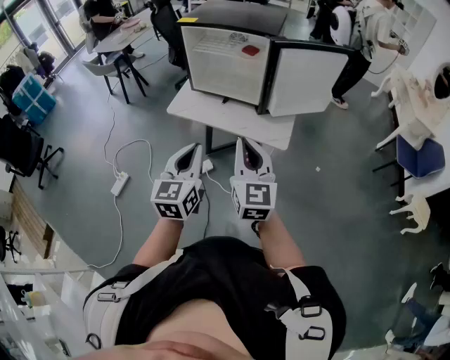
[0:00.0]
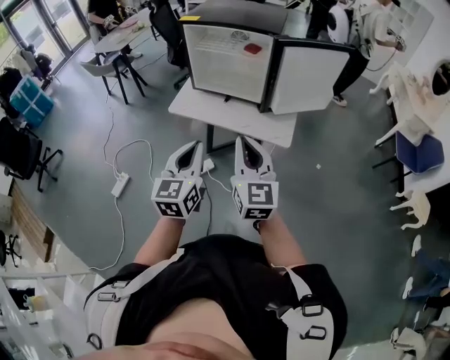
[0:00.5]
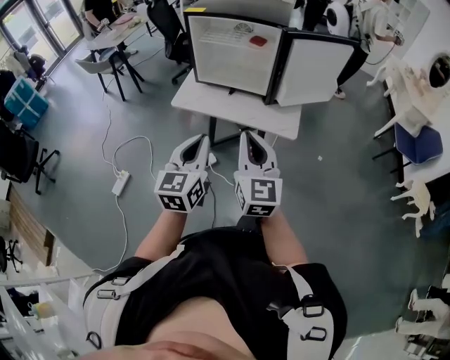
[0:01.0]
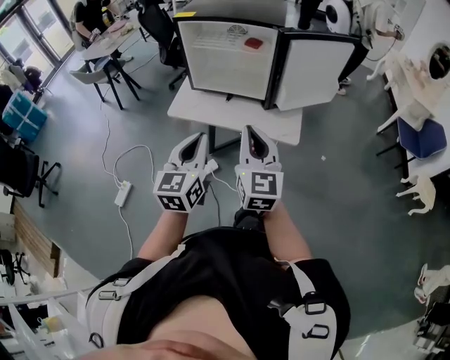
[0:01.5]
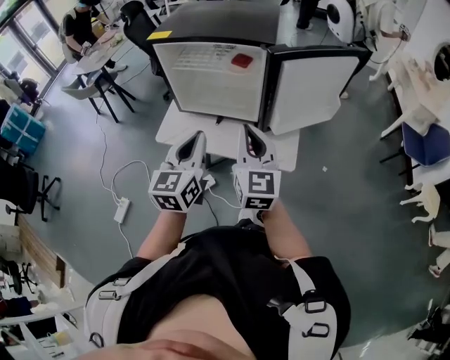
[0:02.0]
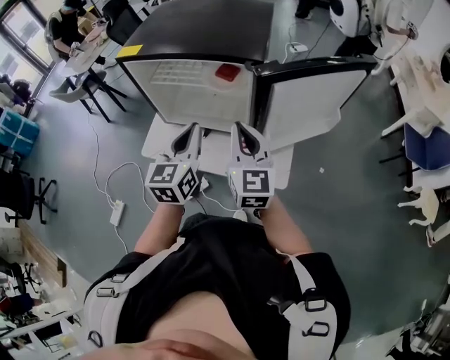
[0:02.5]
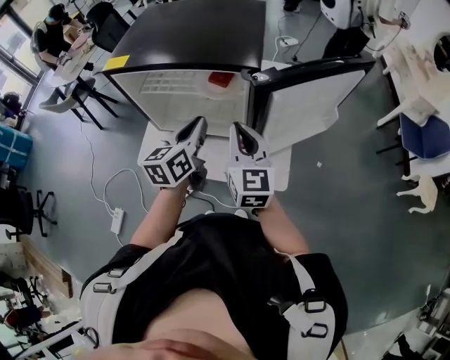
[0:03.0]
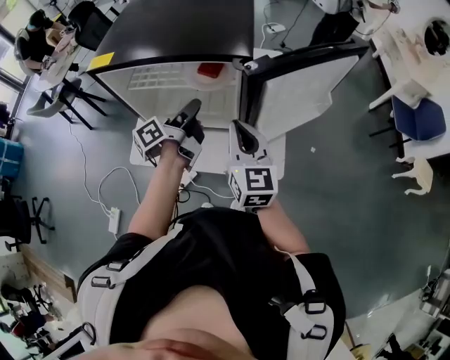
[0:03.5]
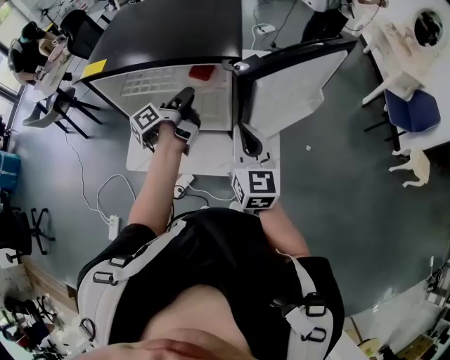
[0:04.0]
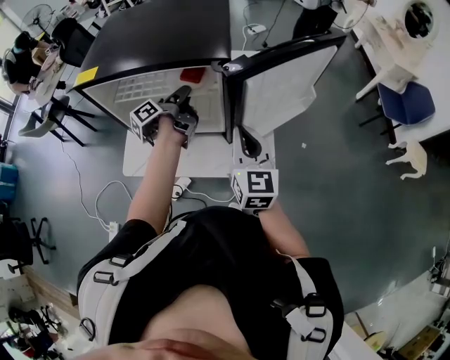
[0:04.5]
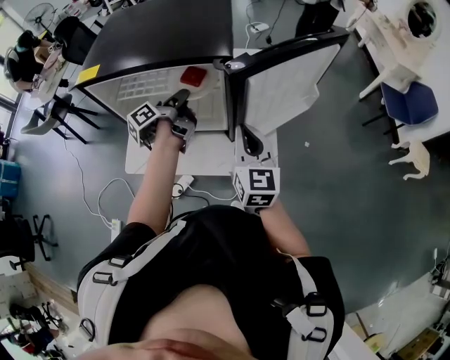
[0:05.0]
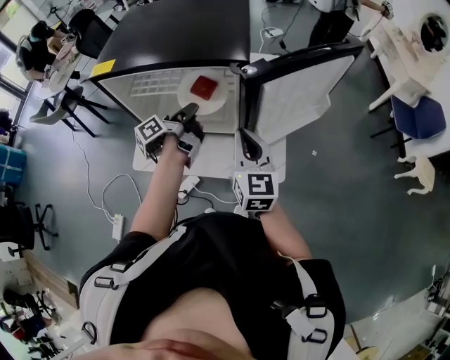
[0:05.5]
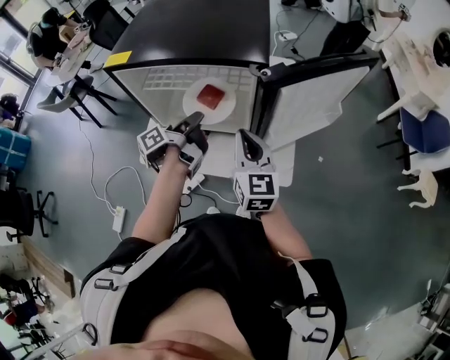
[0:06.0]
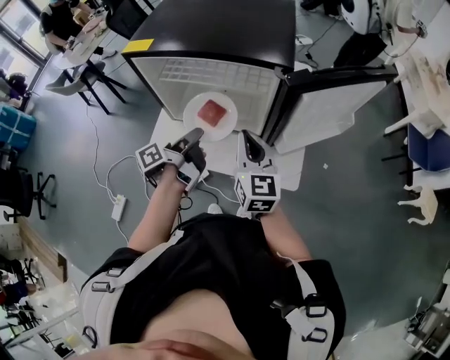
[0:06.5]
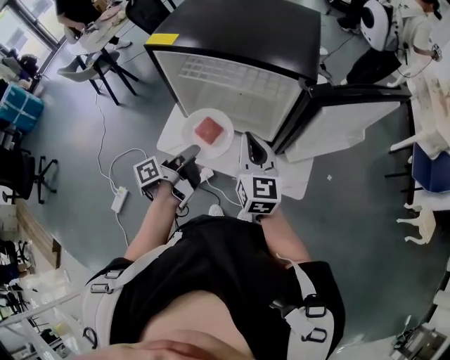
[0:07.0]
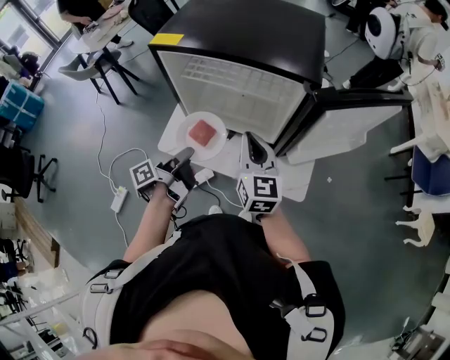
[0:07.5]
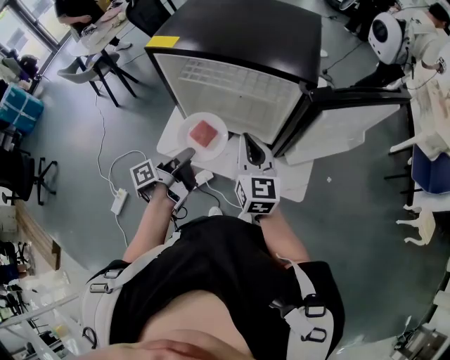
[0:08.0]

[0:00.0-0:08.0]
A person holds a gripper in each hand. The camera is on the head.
0:00.0 to 0:02.0: Both grippers travel together forward, some 20 cm.
0:02.0 to 0:04.0: The left gripper moves forward, approximately 30 cm, rotates around the line of its fingers by approximately 80 degrees, counterclockwise from behind, and opens, while the right gripper moves forward and to the right, about 15 cm.
0:04.0 to 0:06.0: The right gripper moves about 5 cm. Meanwhile the left gripper shifts about 5 cm backward.
0:06.0 to 0:08.0: The left gripper goes approximately 15 cm backward and to the left. Meanwhile the right gripper travels to the left by about 10 cm.

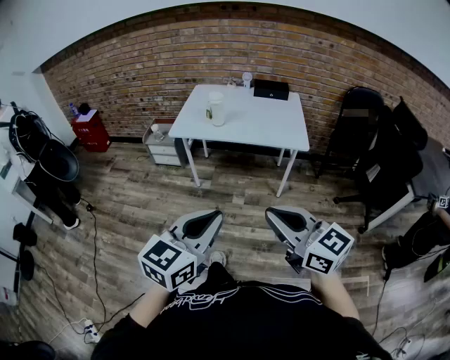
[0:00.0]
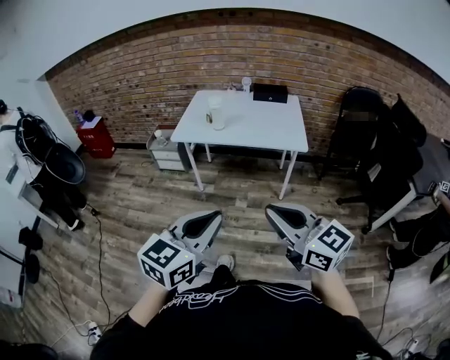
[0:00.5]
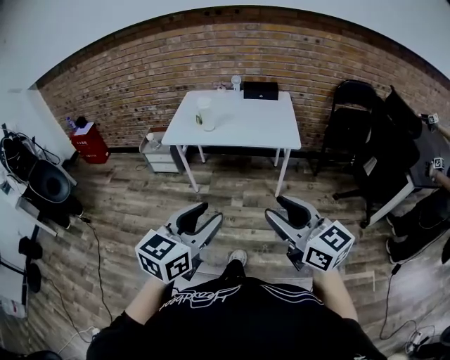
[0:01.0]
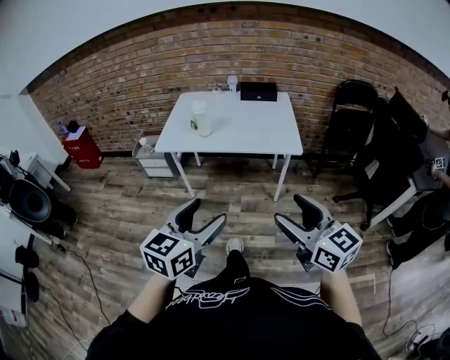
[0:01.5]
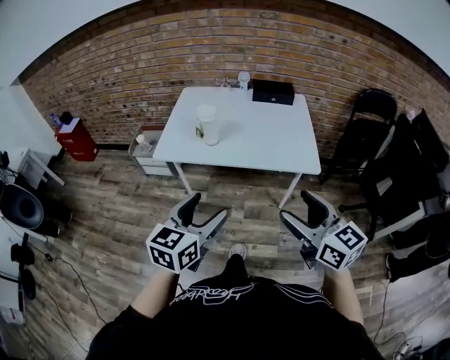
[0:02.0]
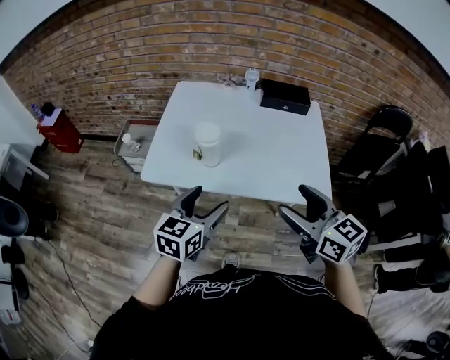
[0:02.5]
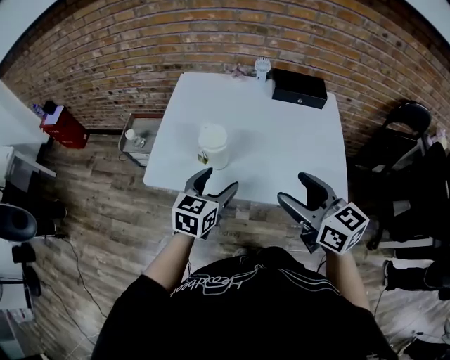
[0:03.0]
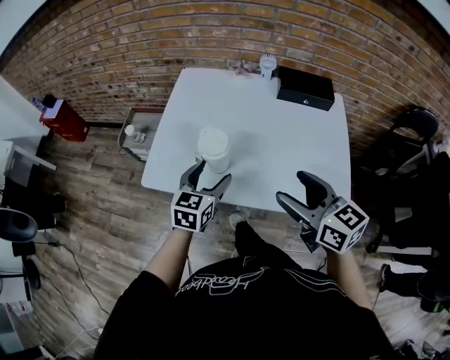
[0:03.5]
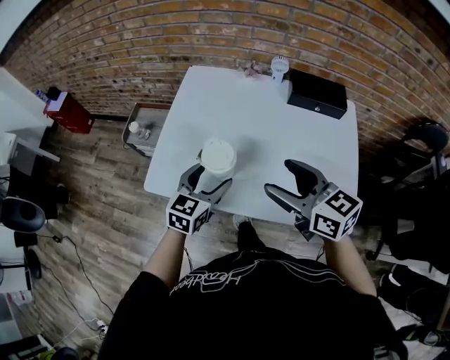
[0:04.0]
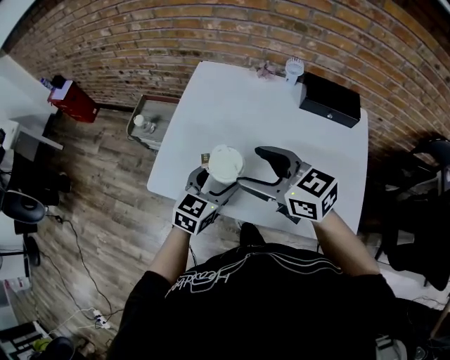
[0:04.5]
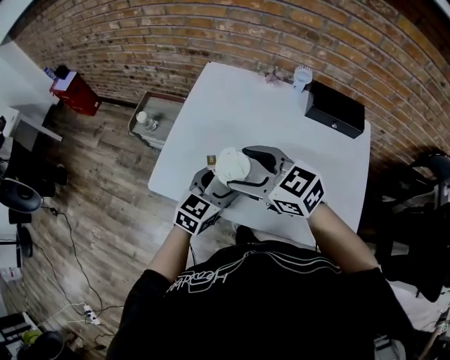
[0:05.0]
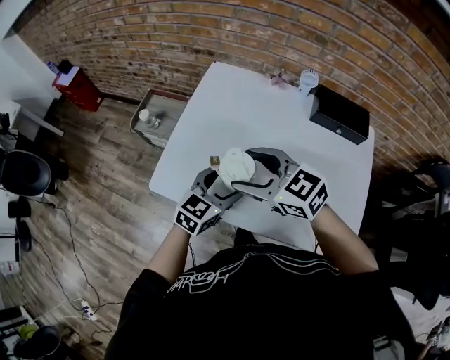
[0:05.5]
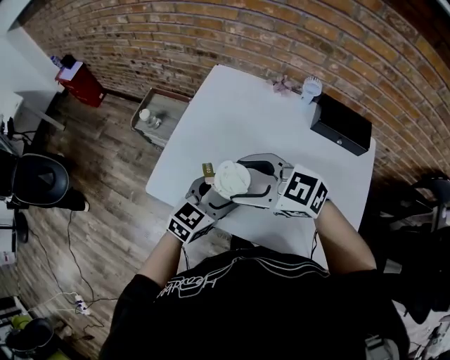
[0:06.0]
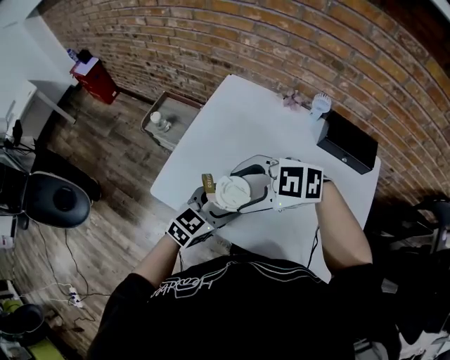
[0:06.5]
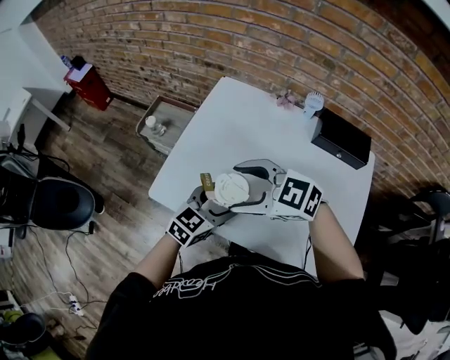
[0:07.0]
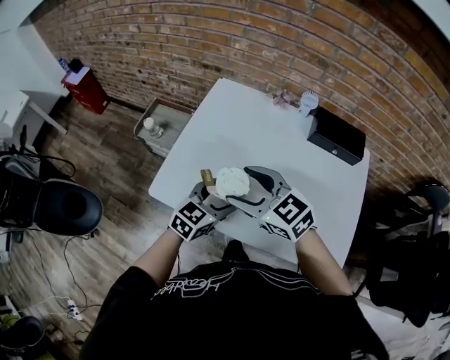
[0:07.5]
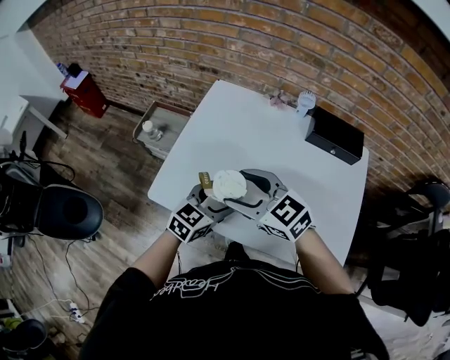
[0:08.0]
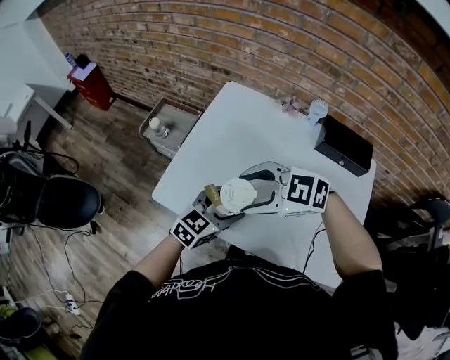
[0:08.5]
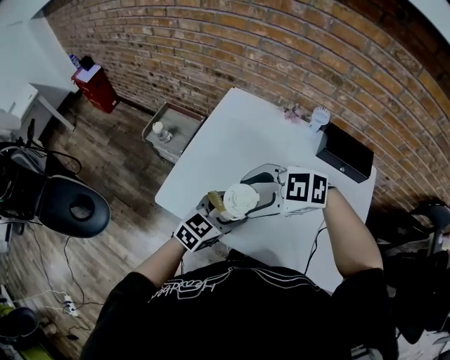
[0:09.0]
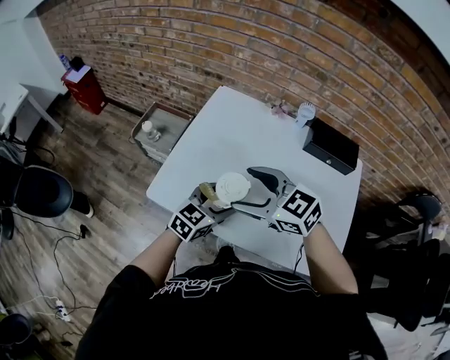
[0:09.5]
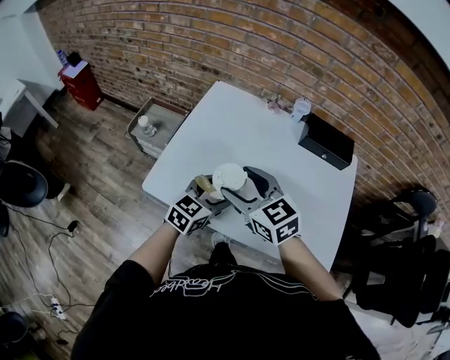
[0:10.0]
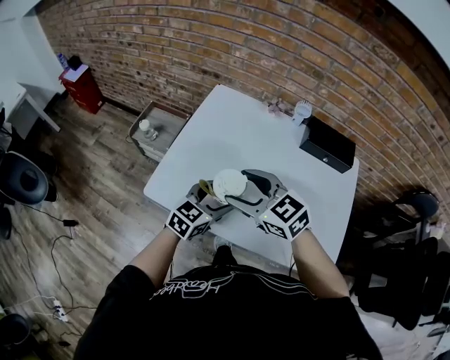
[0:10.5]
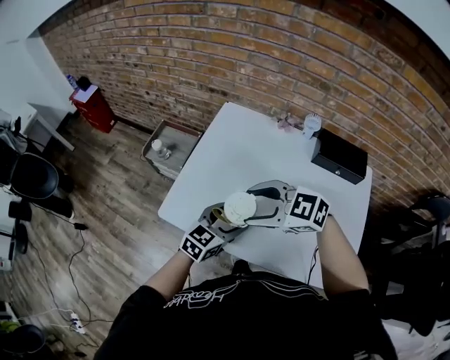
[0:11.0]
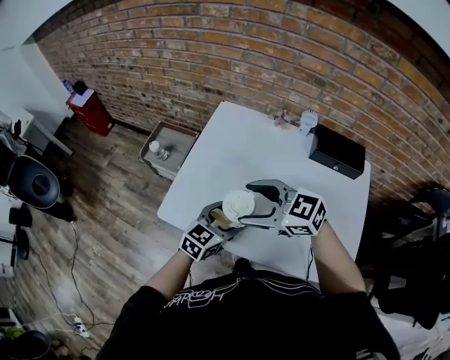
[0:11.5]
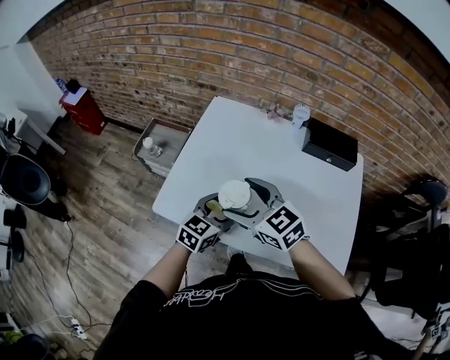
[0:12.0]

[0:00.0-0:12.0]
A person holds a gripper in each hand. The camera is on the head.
0:00.0 to 0:02.0: The grippers both shift forward by about 25 cm. The right gripper opens up. The left gripper opens up.
0:02.0 to 0:04.0: Both grippers travel together forward, roughly 40 cm. The right gripper turns by approximately 20 degrees.
0:04.0 to 0:06.0: The right gripper changes place by some 15 cm, and turns by roughly 50 degrees.

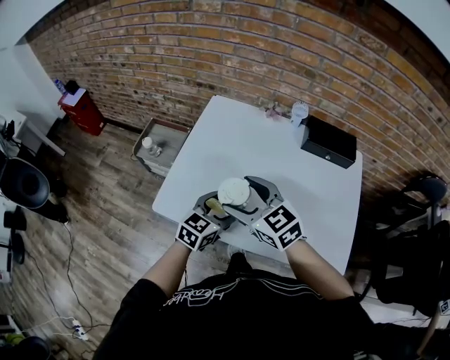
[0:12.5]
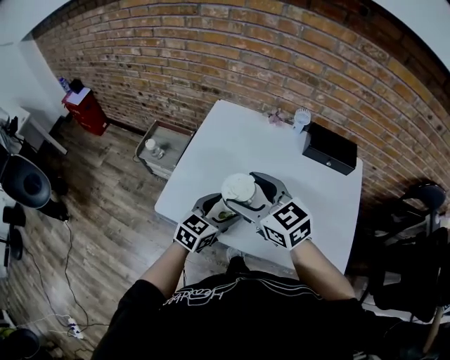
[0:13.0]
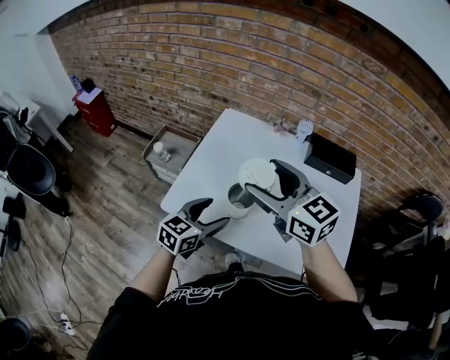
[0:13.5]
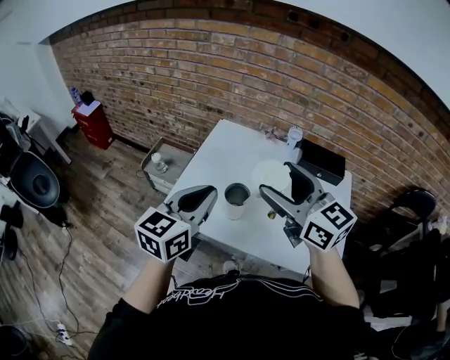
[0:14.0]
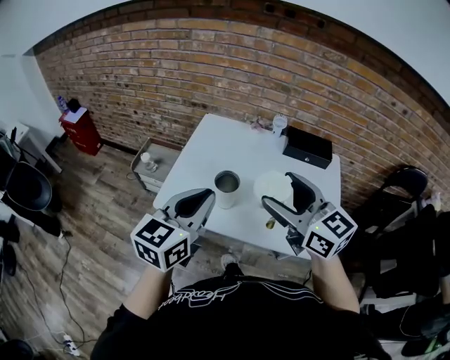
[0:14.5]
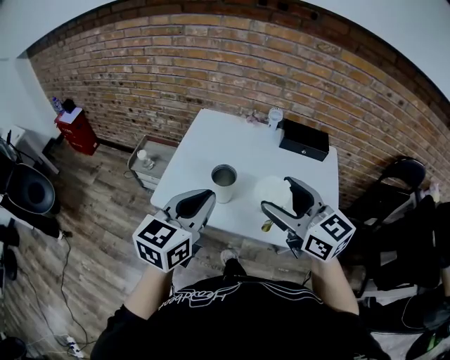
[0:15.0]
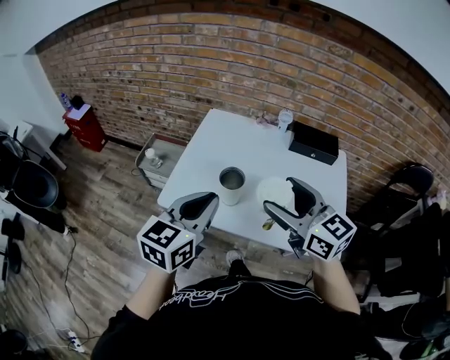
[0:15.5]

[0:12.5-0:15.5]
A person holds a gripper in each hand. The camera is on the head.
0:12.5 to 0:14.0: Both grippers move upward, some 20 cm. The right gripper changes its angle by approximately 20 degrees; the left gripper closes its fingers.
0:14.0 to 0:15.5: The left gripper shifts by roughly 5 cm, while the right gripper shifts roughly 10 cm backward and downward.

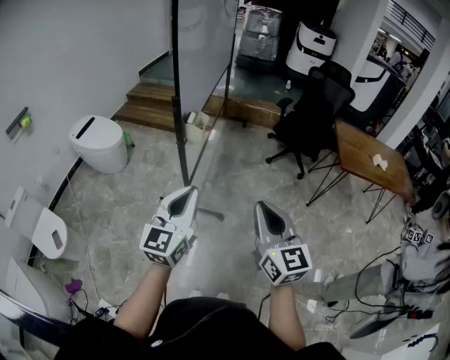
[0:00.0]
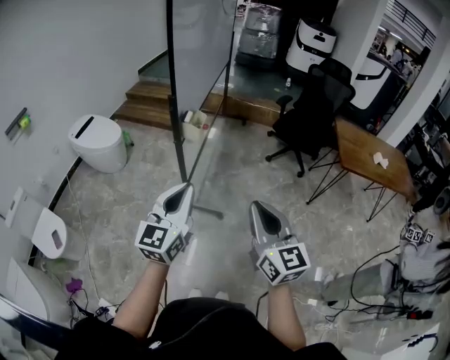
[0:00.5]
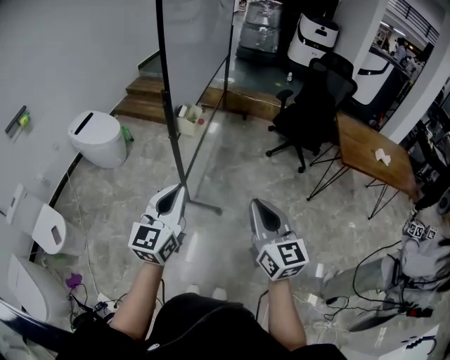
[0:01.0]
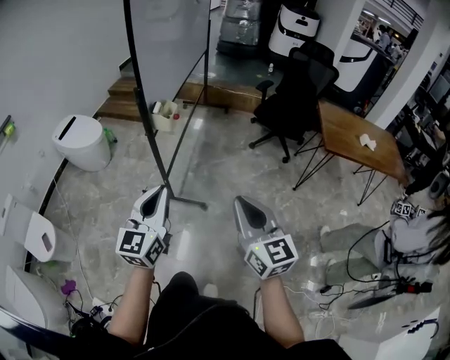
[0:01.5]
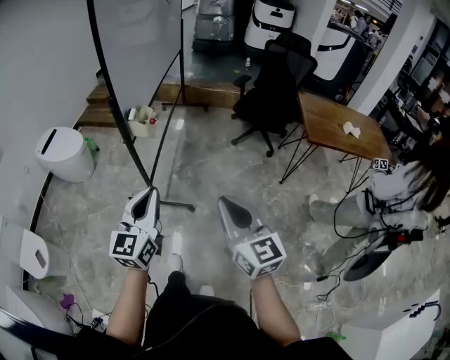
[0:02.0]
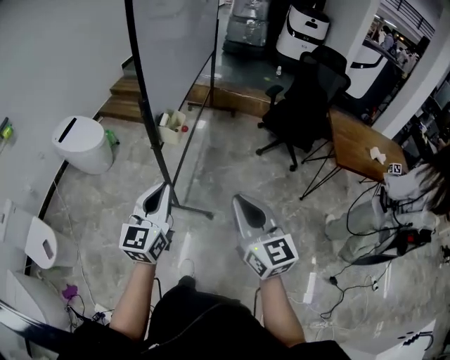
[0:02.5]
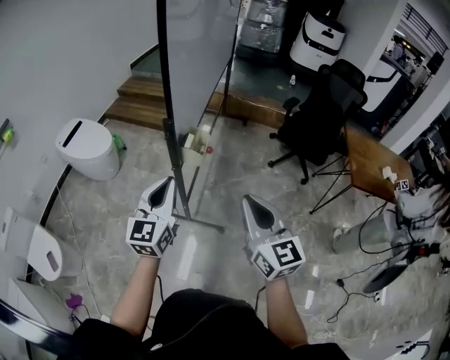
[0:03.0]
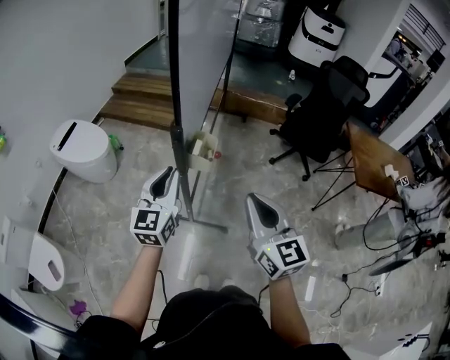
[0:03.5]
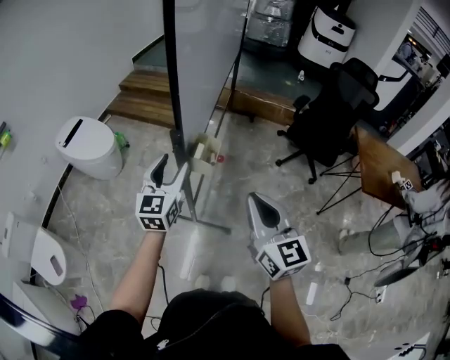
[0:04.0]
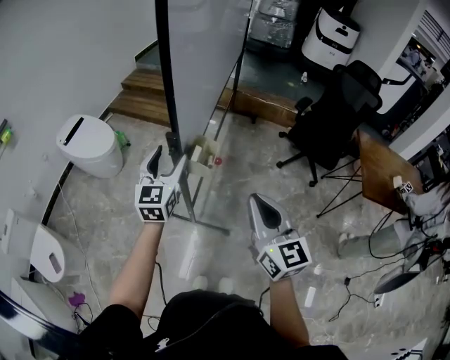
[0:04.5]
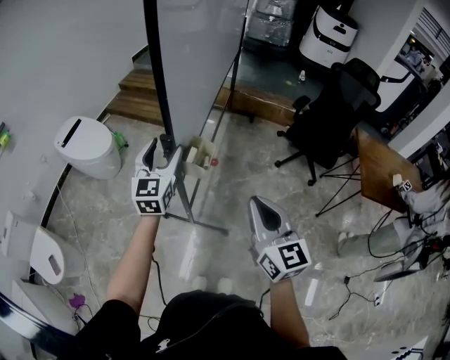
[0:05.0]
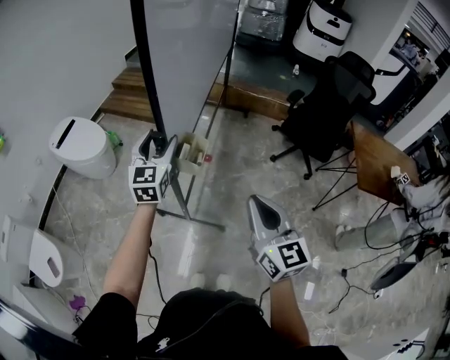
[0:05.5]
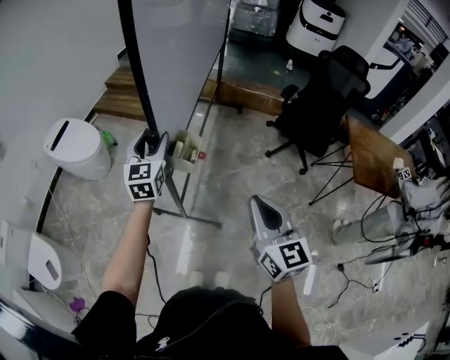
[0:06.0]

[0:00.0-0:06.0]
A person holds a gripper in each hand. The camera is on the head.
0:00.0 to 0:02.0: The two grippers go approximately 10 cm to the right.
0:02.0 to 0:04.0: The two grippers go some 35 cm forward and to the left. The left gripper opens up.
0:04.0 to 0:06.0: The left gripper travels forward by approximately 10 cm. The right gripper heads to the right, covering approximately 5 cm.
